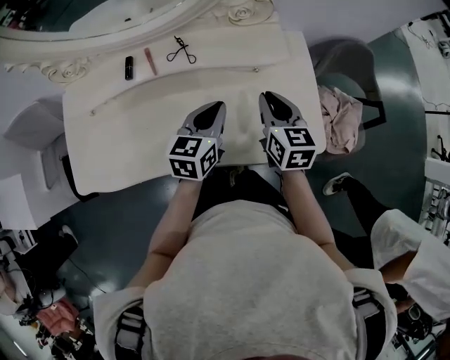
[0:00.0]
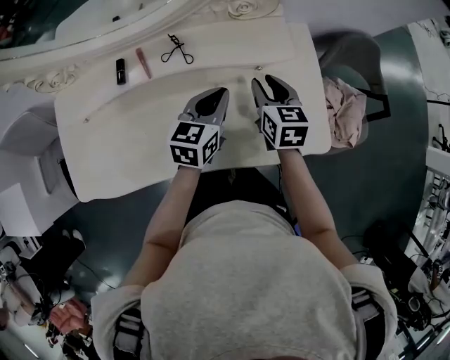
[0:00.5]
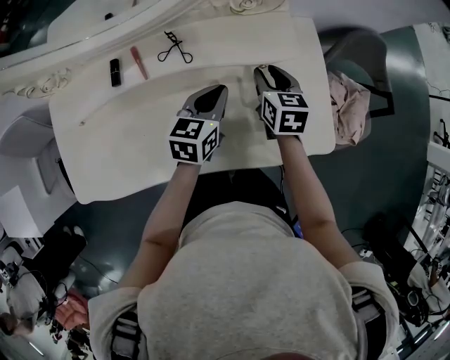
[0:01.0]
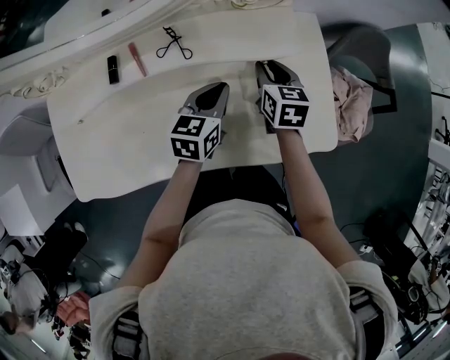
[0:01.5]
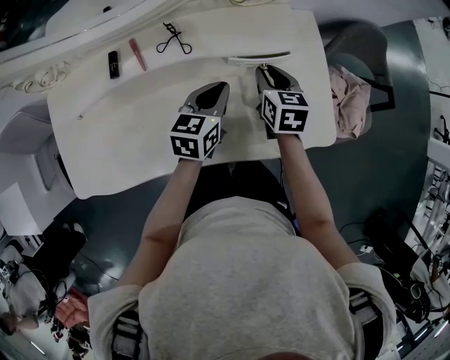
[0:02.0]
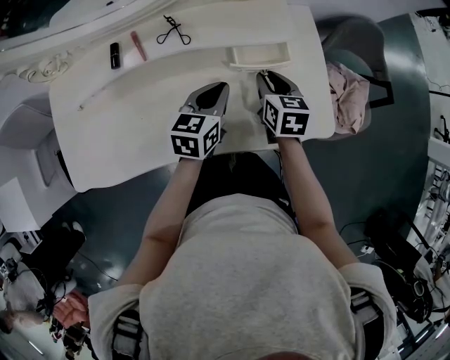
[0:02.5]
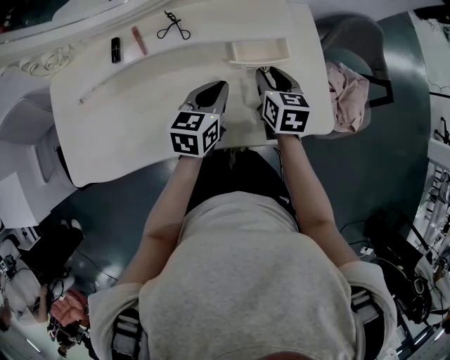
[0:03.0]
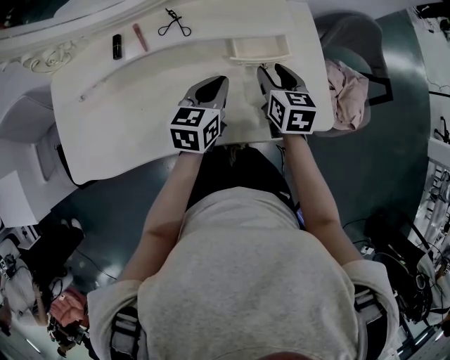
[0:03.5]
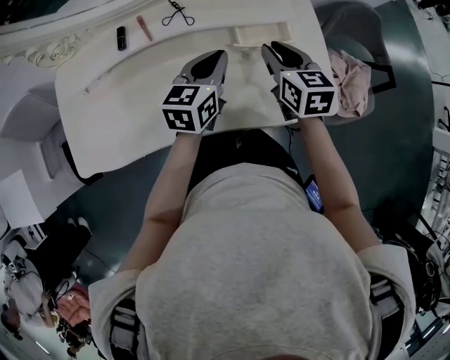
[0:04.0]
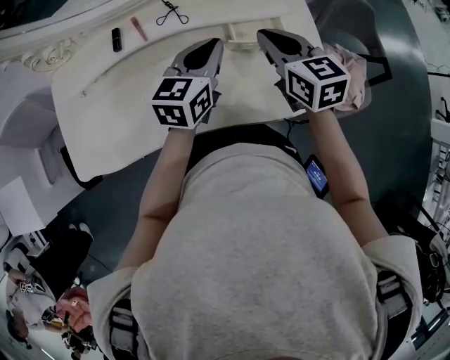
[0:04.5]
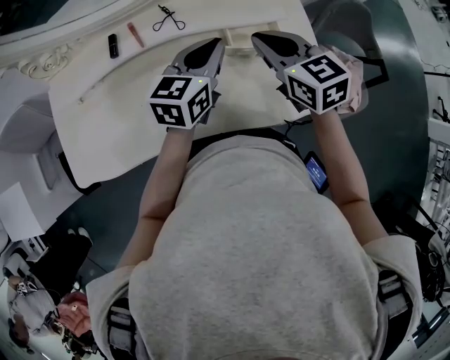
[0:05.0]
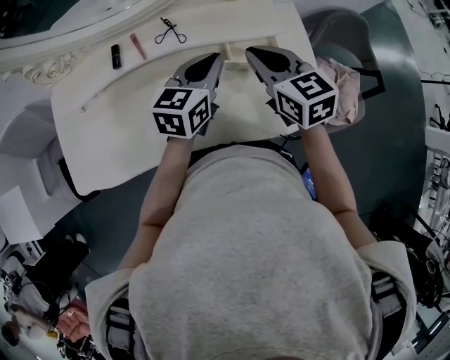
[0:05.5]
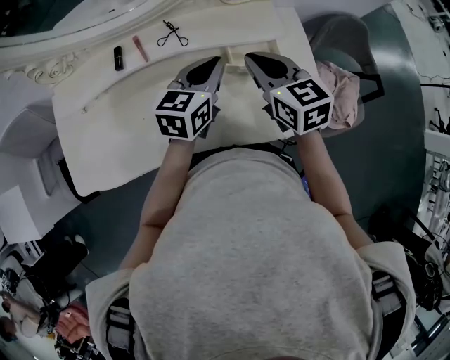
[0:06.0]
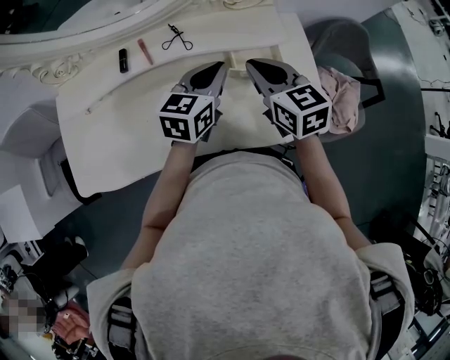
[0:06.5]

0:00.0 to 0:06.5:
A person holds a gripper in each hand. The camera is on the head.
0:00.0 to 0:02.0: The left gripper travels downward by approximately 5 cm, while the right gripper heads downward and forward, covering some 10 cm, and opens.
0:02.0 to 0:04.5: Both grippers travel together upward, some 10 cm. The right gripper rotates about 20 degrees, and closes up.
0:04.5 to 0:06.5: The grippers move only a little.

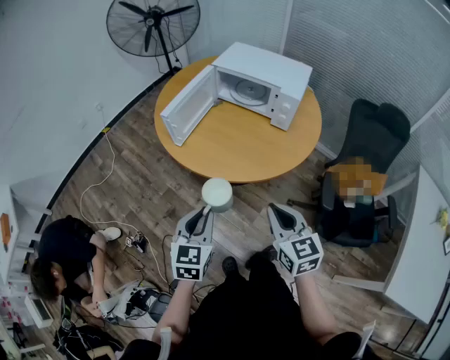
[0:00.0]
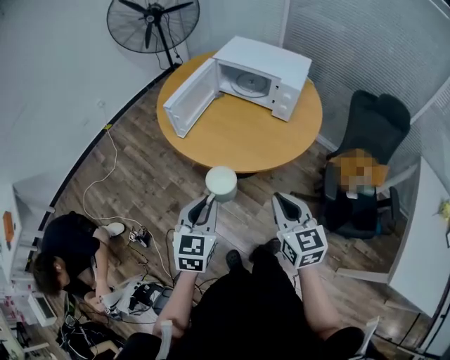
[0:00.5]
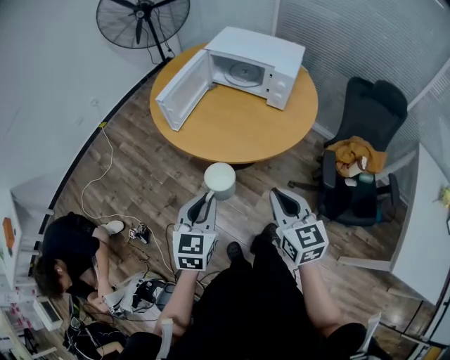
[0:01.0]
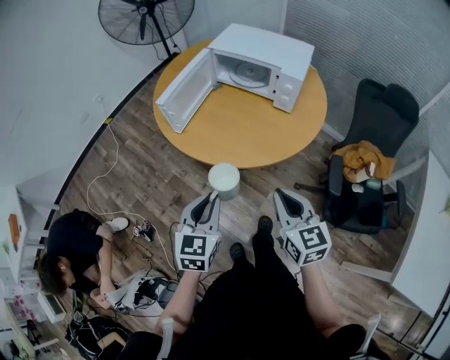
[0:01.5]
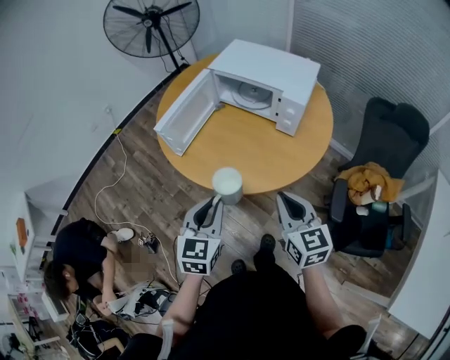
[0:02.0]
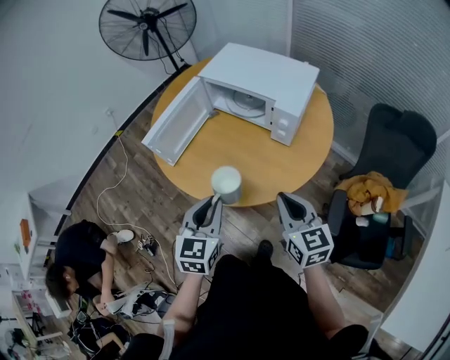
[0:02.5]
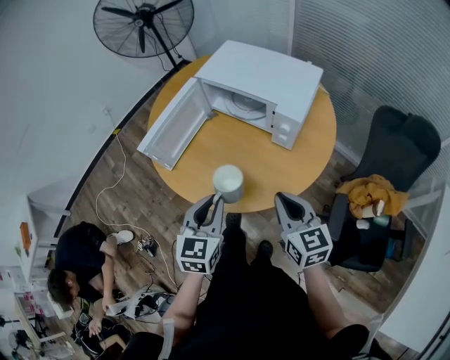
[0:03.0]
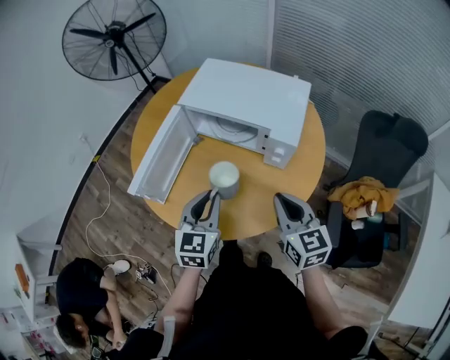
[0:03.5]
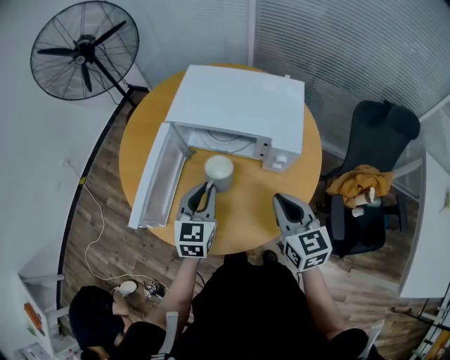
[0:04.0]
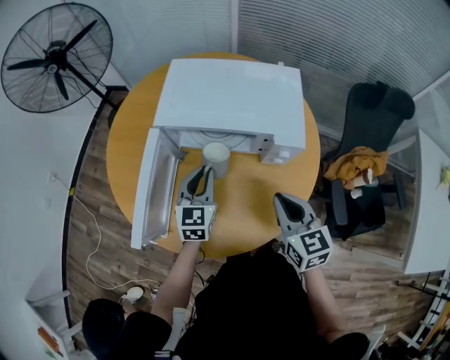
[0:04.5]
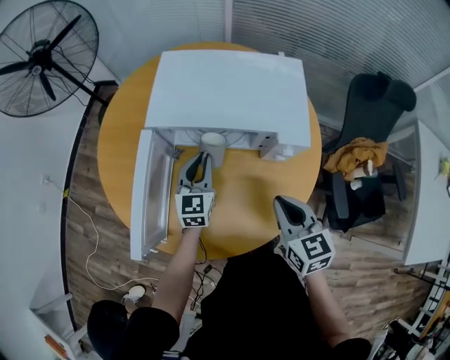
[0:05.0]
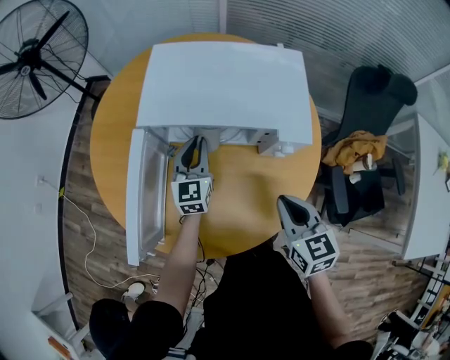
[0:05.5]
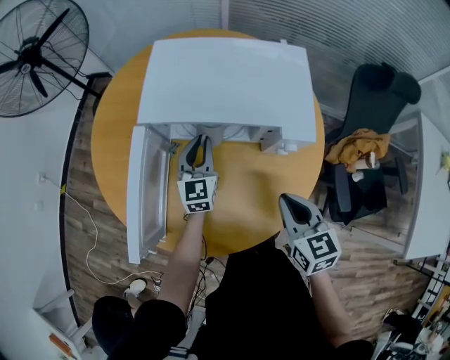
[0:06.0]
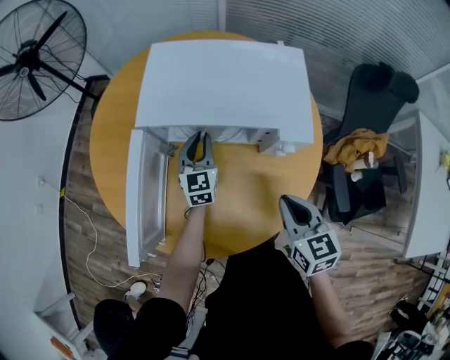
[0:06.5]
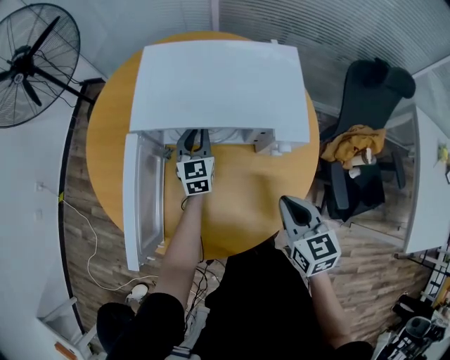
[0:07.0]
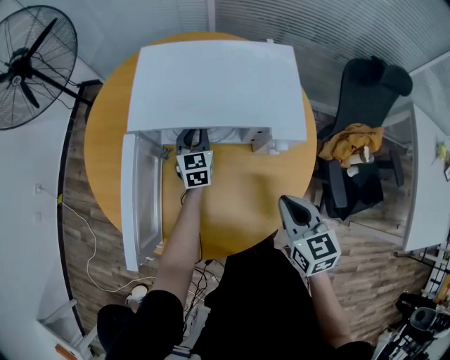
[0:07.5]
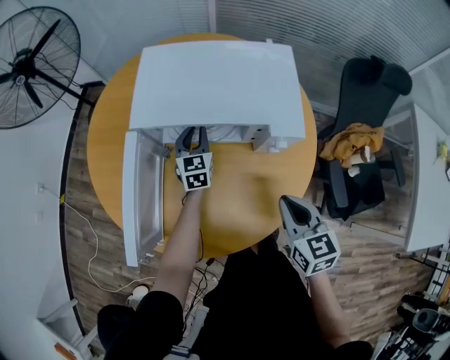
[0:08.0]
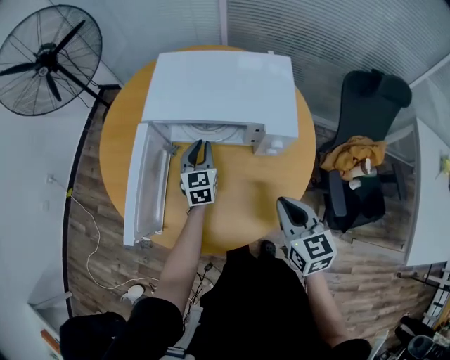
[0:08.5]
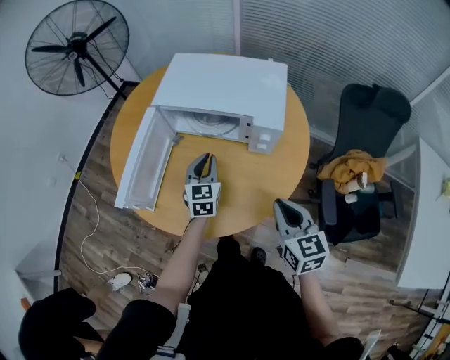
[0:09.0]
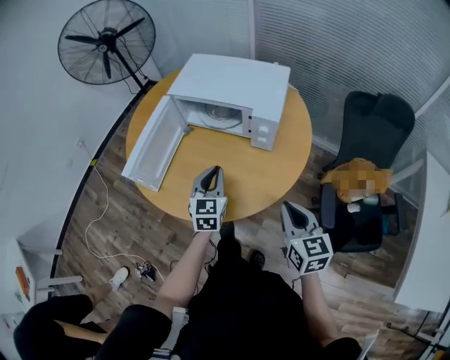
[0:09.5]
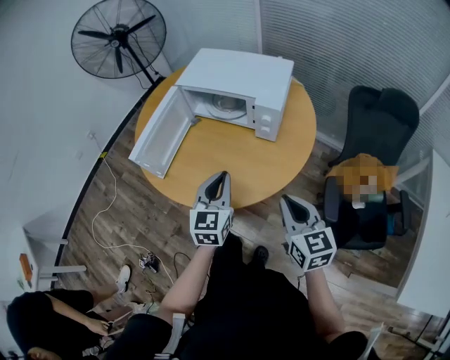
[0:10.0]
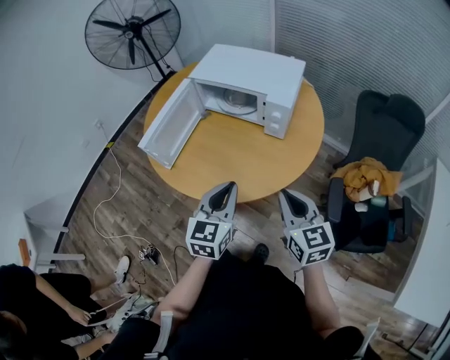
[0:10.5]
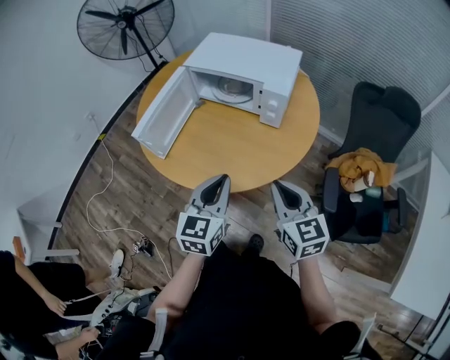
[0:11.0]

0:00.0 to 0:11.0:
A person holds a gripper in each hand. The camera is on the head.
0:00.0 to 0:02.0: The two grippers go roughly 10 cm forward and to the right.
0:02.0 to 0:03.5: Both grippers travel together forward, some 20 cm.
0:03.5 to 0:05.5: The right gripper is displaced downward and forward by roughly 10 cm, and swivels some 20 degrees. Meanwhile the left gripper is displaced forward and downward by some 30 cm.
0:05.5 to 0:07.5: The left gripper shifts about 10 cm downward and forward.
0:07.5 to 0:09.0: The right gripper travels backward by about 10 cm. The left gripper is displaced backward by about 20 cm.
0:09.0 to 0:11.0: The left gripper travels backward and upward by some 30 cm. Meanwhile the right gripper shifts approximately 10 cm backward.

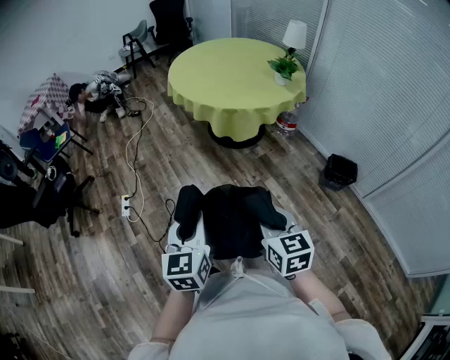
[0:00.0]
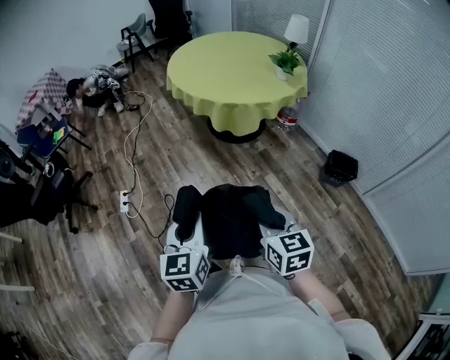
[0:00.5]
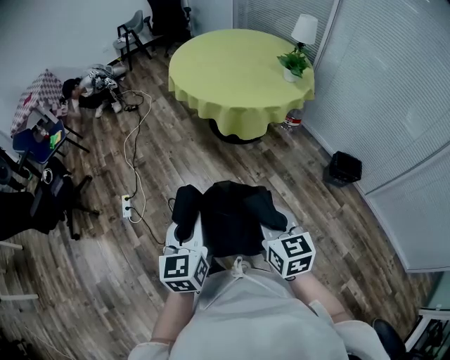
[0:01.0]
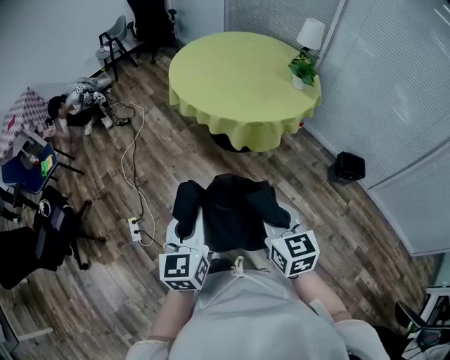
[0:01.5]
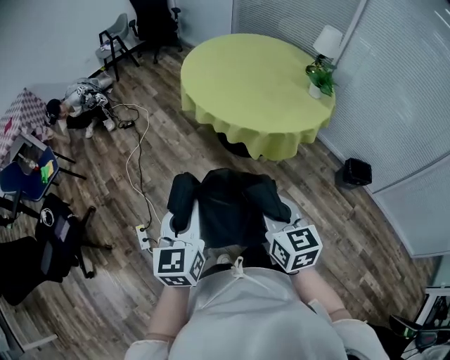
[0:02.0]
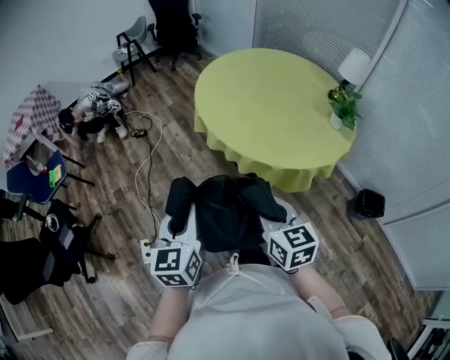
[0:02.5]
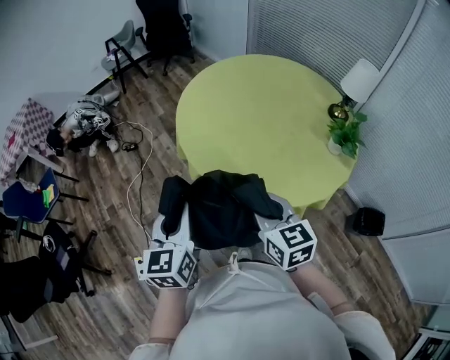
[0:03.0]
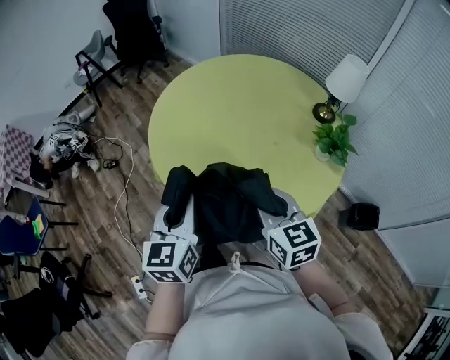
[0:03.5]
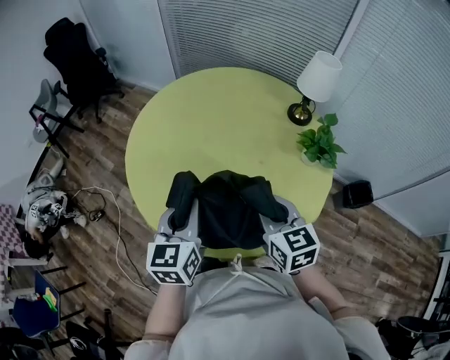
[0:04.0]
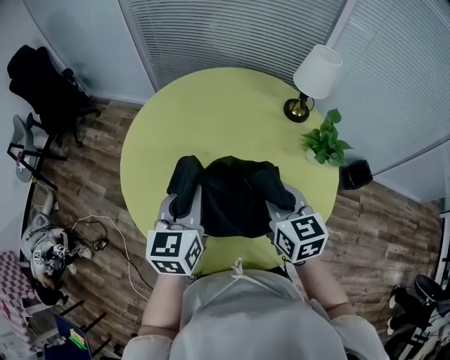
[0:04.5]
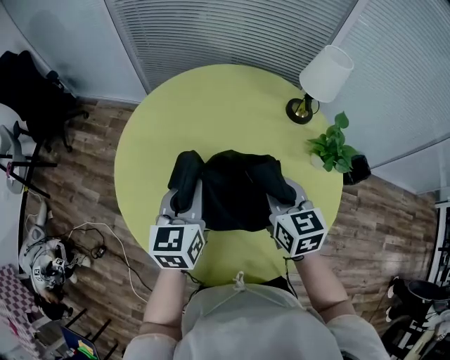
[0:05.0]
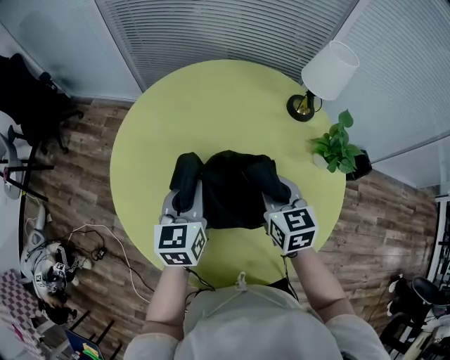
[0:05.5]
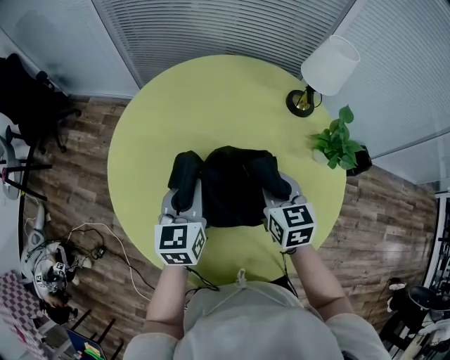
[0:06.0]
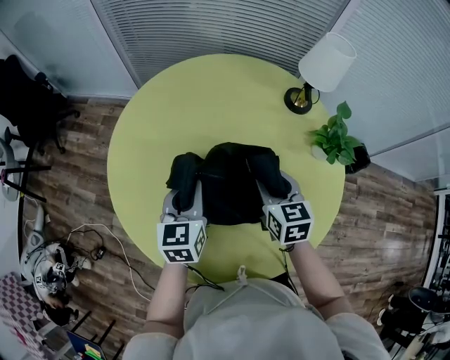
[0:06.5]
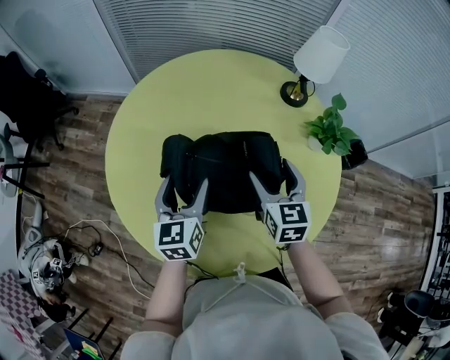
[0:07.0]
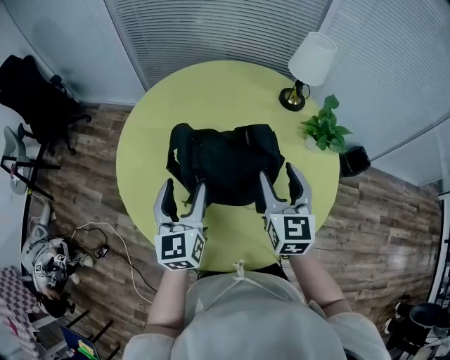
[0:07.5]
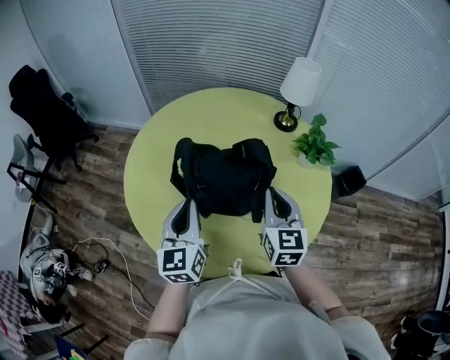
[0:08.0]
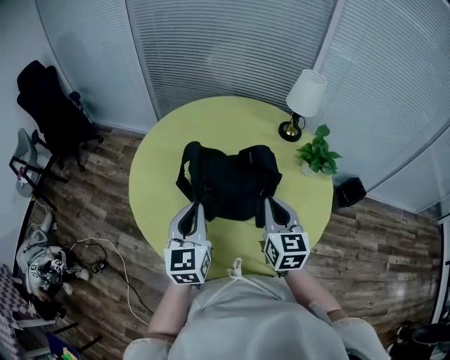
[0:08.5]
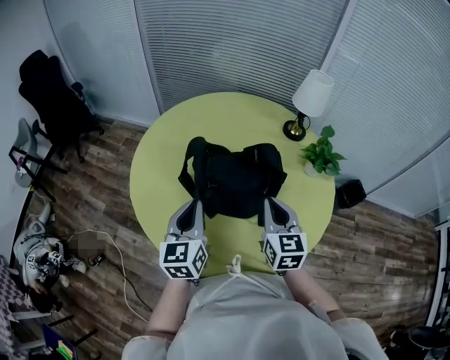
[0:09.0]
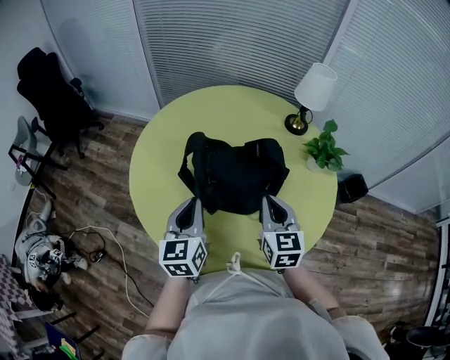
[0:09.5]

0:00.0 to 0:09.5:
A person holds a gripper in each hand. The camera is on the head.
0:00.0 to 0:02.0: The pair of grippers is taken forward and to the left, approximately 40 cm.
0:02.0 to 0:04.0: Both grippers are carried roughly 60 cm. The left gripper rotates about 20 degrees.
0:04.0 to 0:05.5: The two grippers go some 25 cm forward. The right gripper turns by approximately 20 degrees.
0:05.5 to 0:07.5: The left gripper travels backward by some 10 cm, and opens. Meanwhile the right gripper travels backward and upward by roughly 10 cm, rotates roughly 20 degrees, and opens.
0:07.5 to 0:09.5: Both grippers move backward, roughly 5 cm. The right gripper closes up. Meanwhile the left gripper closes its fingers.
